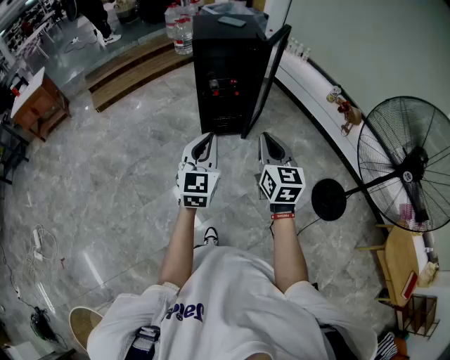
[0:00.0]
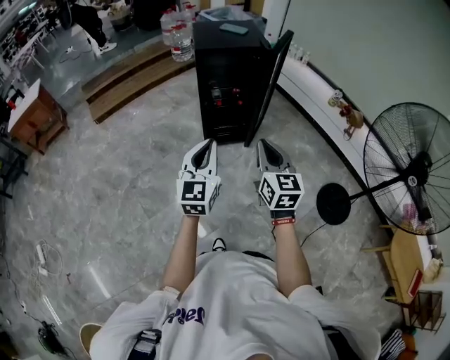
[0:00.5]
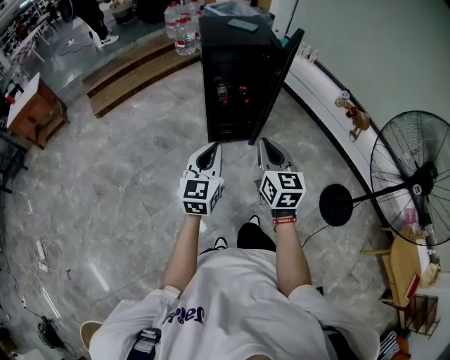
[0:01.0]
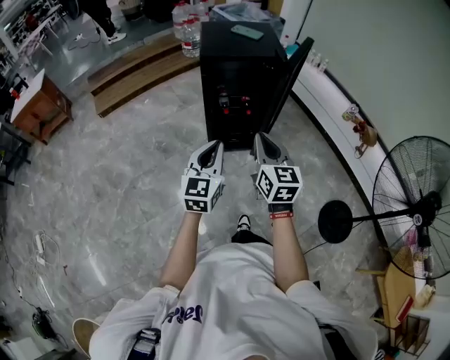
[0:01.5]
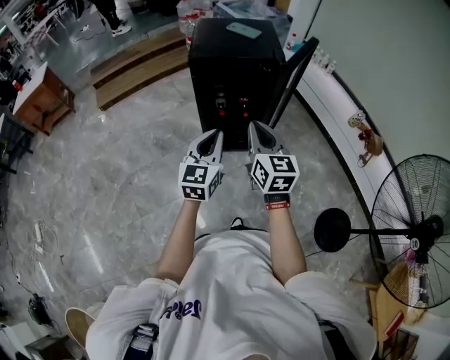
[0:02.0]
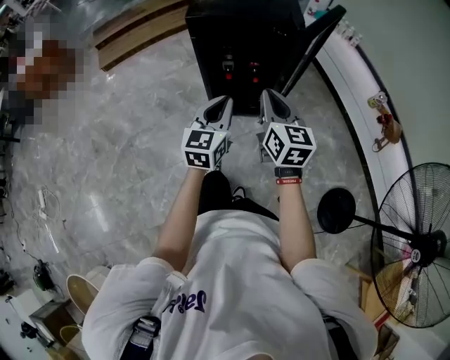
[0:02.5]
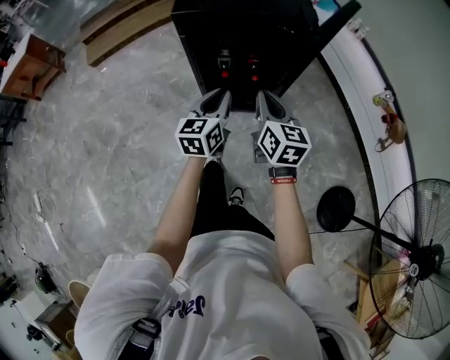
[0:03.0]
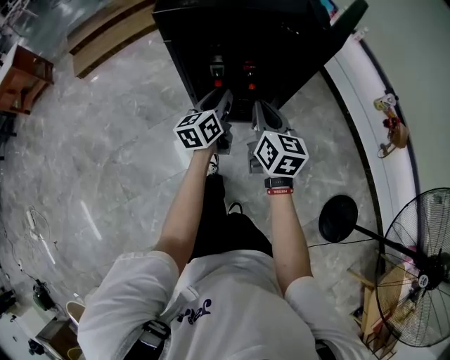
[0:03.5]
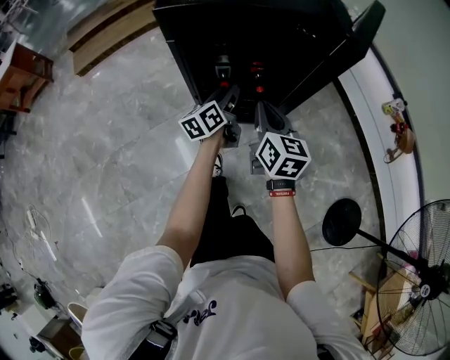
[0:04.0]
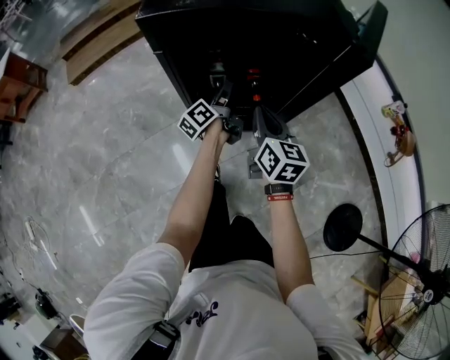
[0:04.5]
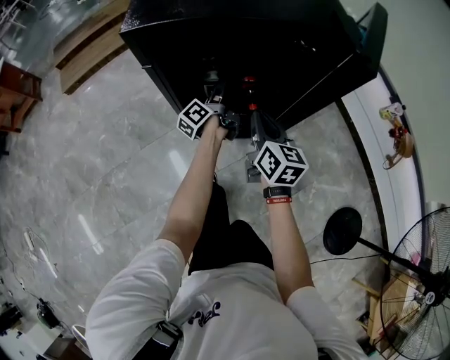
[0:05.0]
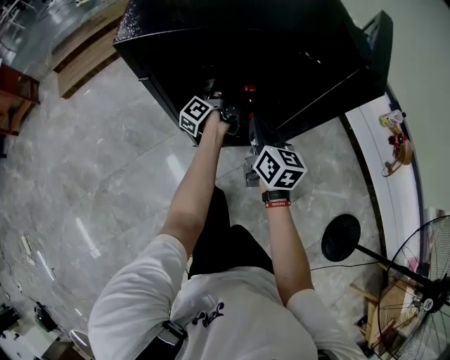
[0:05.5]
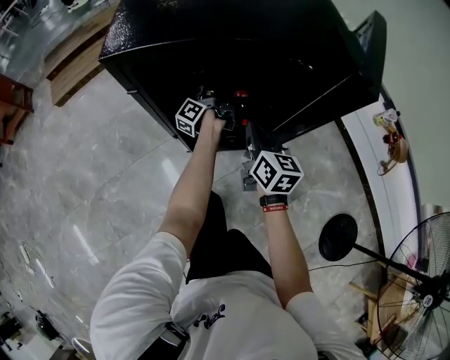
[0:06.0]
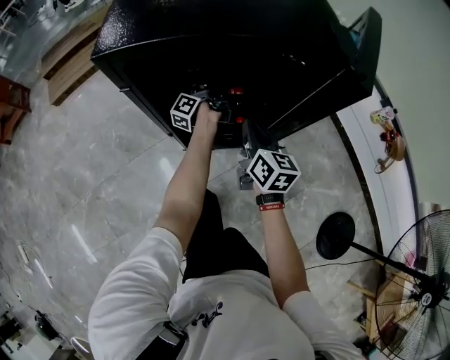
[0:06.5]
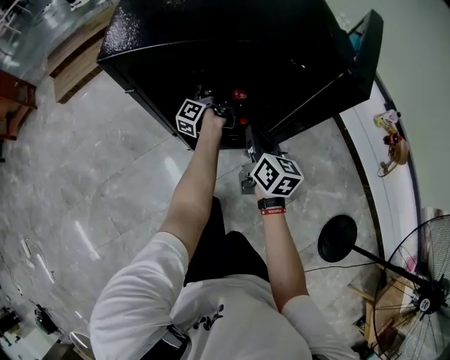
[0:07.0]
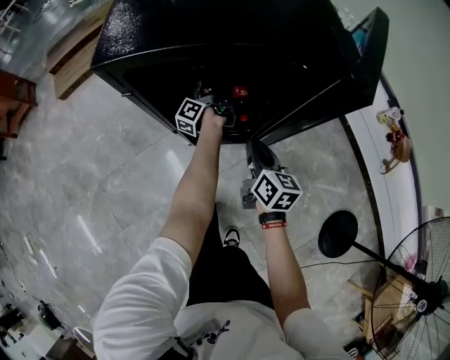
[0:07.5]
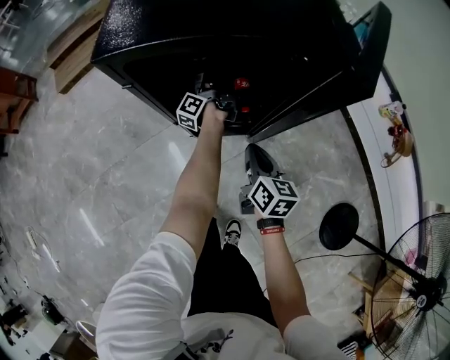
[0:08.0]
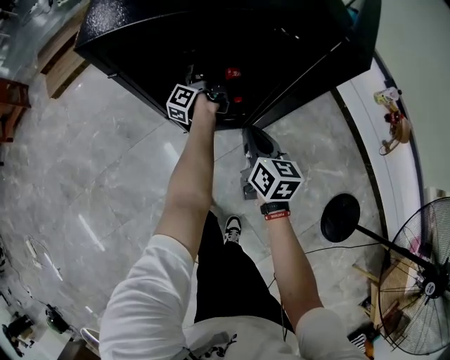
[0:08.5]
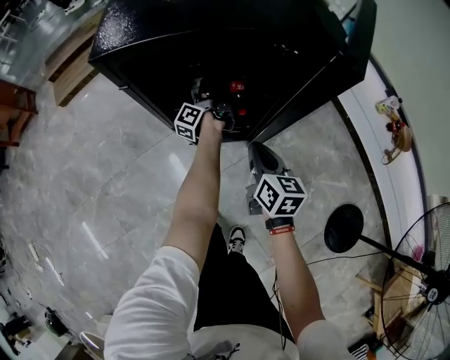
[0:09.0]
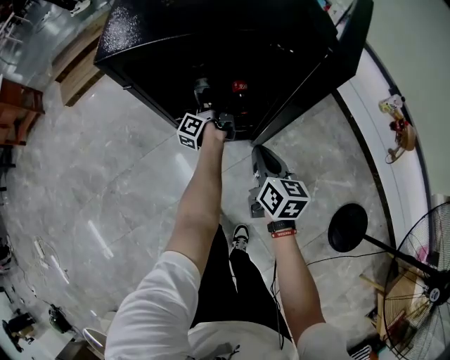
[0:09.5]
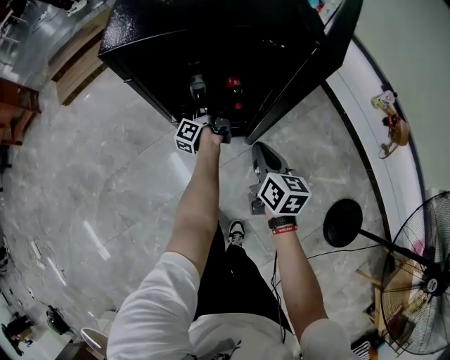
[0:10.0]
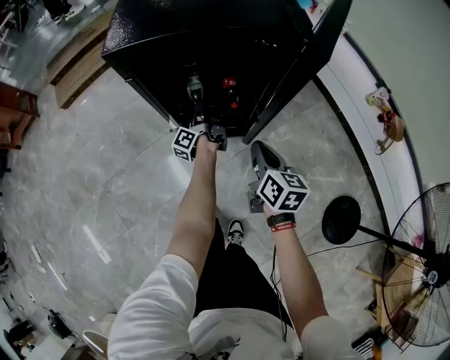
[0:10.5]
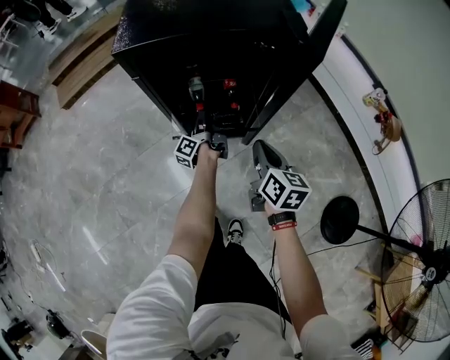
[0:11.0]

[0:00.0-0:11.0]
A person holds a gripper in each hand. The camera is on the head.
0:00.0 to 0:02.0: Both grippers move forward, about 30 cm.
0:02.0 to 0:03.5: The two grippers go about 35 cm downward and forward. The left gripper rotates approximately 40 degrees, and opens.
0:03.5 to 0:05.5: The right gripper goes roughly 20 cm forward and downward; the left gripper heads forward and downward, covering roughly 30 cm, rolls counterclockwise, seen from behind, by approximately 50 degrees, and opens up.
0:05.5 to 0:07.5: The left gripper closes. The right gripper moves roughly 5 cm.
0:07.5 to 0:09.0: The grippers make only small movements.
0:09.0 to 0:11.0: The right gripper shifts some 10 cm backward and upward; the left gripper travels backward by approximately 15 cm.

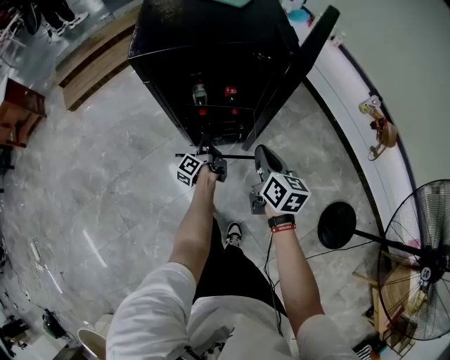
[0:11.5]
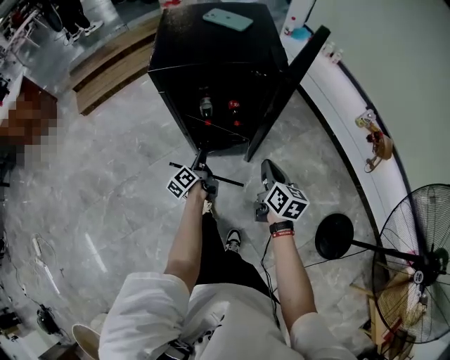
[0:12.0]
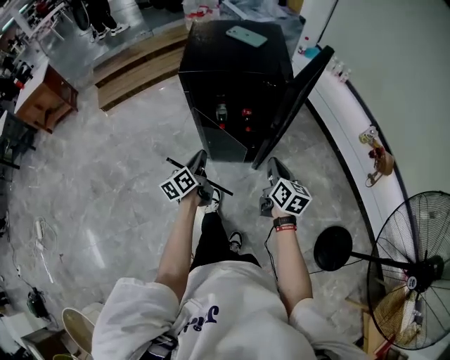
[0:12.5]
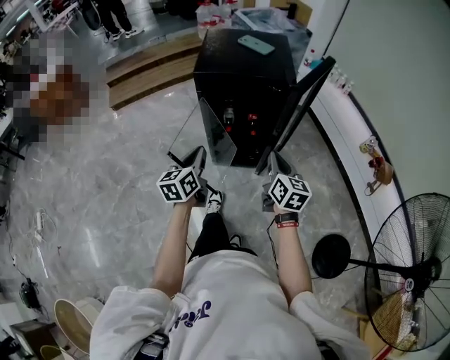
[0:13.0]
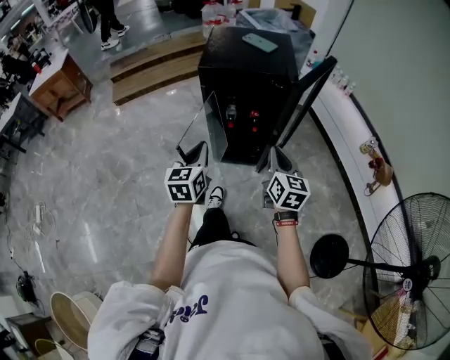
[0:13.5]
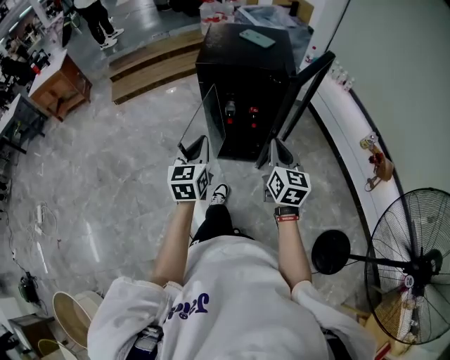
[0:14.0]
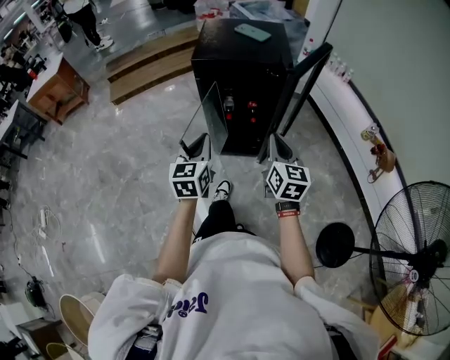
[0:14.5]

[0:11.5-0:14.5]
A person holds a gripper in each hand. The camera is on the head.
0:11.5 to 0:13.0: The right gripper heads upward and backward, covering approximately 20 cm, while the left gripper travels upward and backward by roughly 40 cm, and twists approximately 60 degrees clockwise, seen from behind.
0:13.0 to 0:14.5: The right gripper ends up approximately 5 cm from where it was. Meanwhile the left gripper moves some 5 cm, and changes its angle by some 20 degrees.

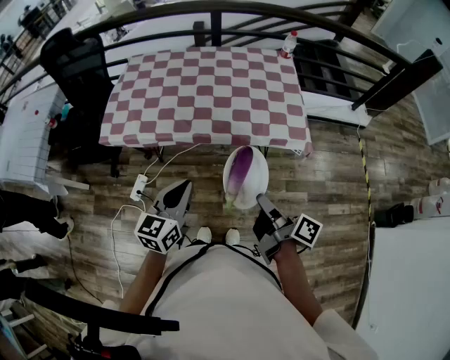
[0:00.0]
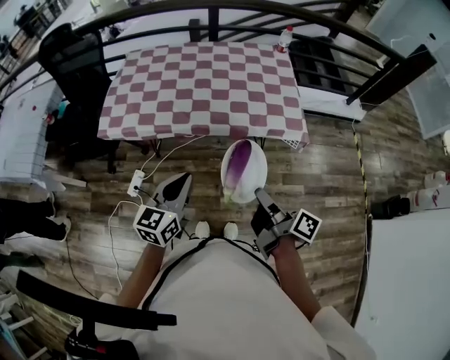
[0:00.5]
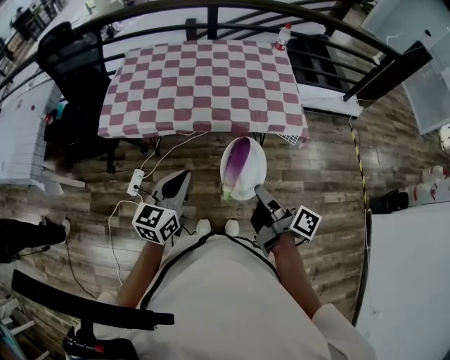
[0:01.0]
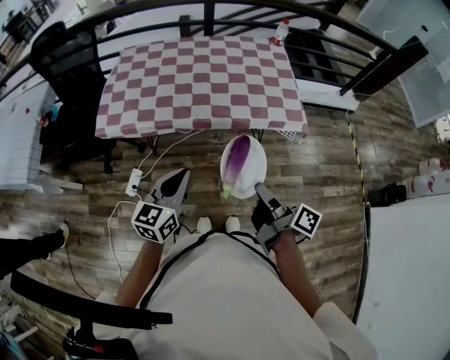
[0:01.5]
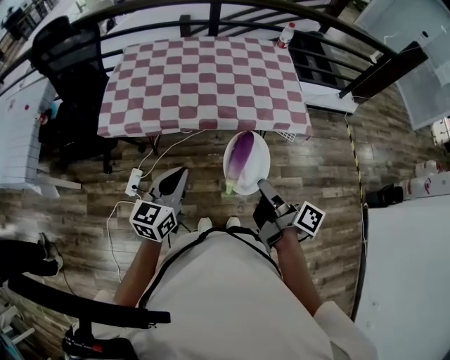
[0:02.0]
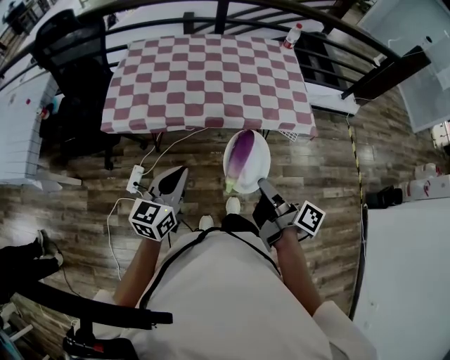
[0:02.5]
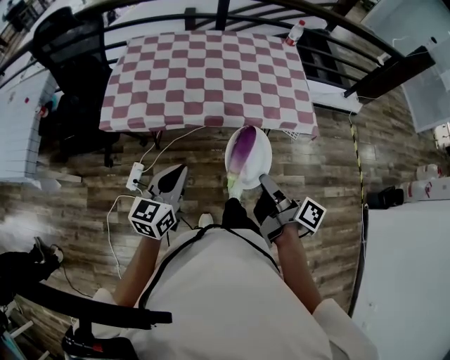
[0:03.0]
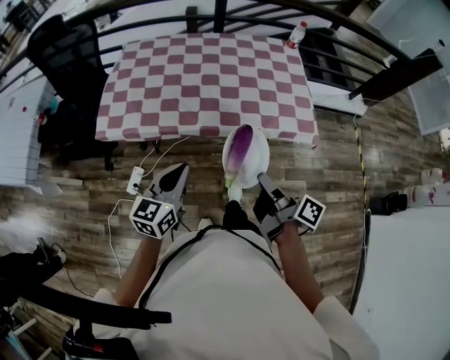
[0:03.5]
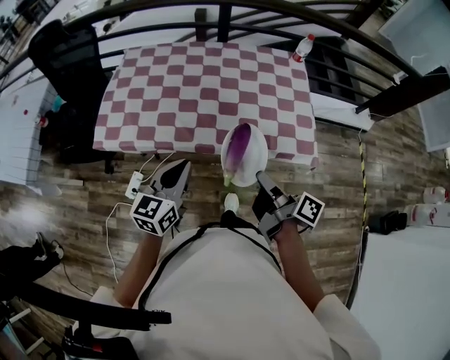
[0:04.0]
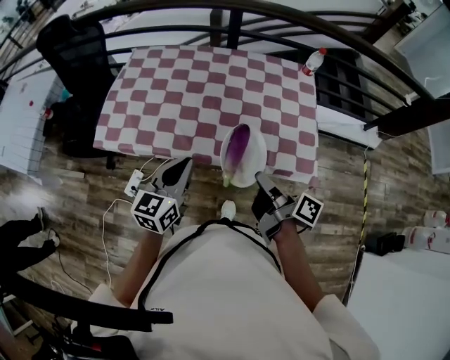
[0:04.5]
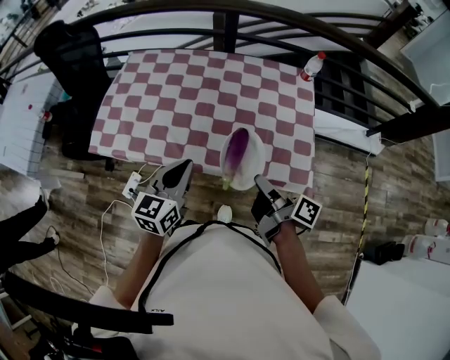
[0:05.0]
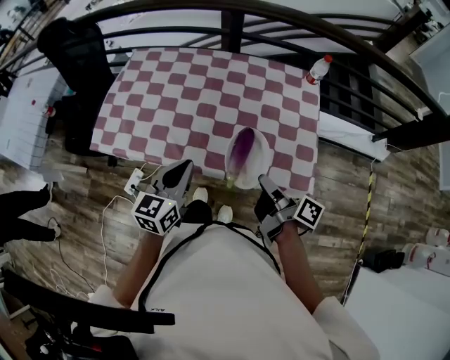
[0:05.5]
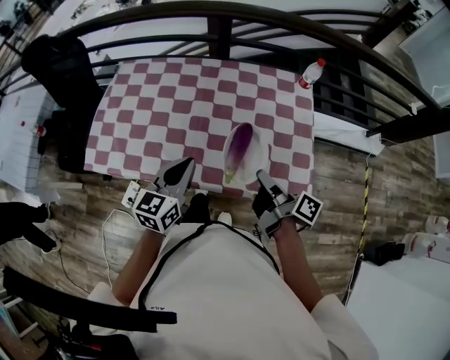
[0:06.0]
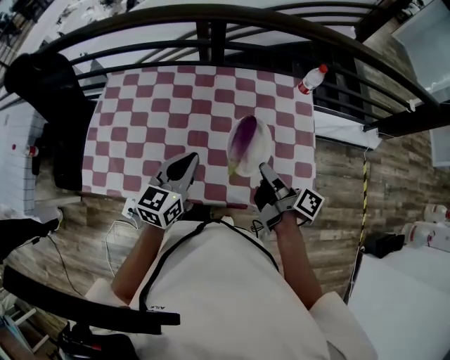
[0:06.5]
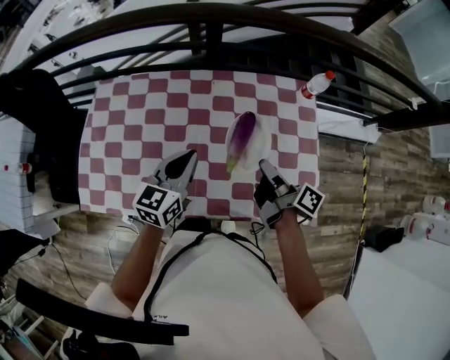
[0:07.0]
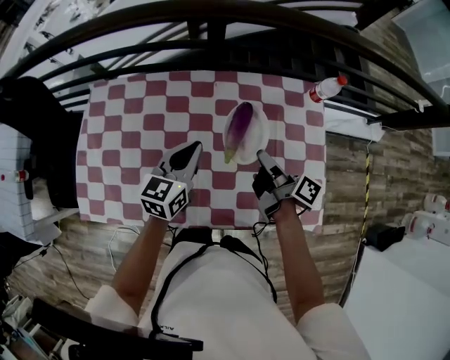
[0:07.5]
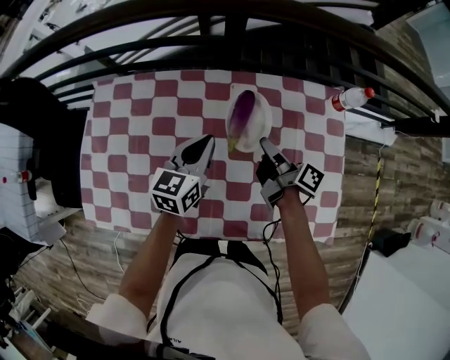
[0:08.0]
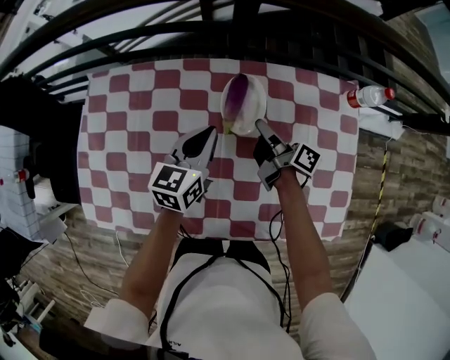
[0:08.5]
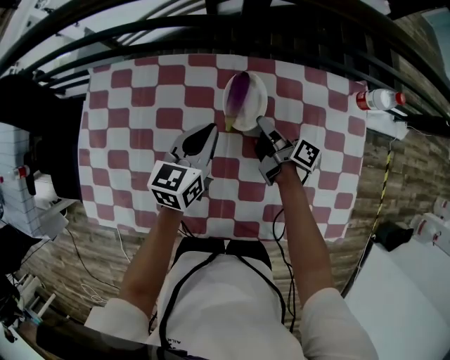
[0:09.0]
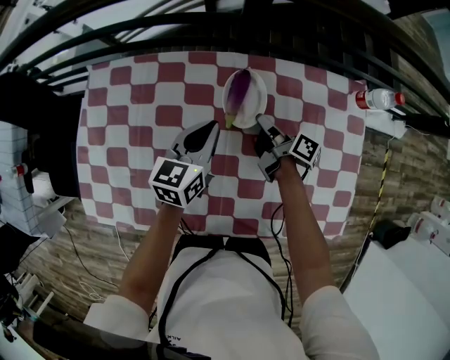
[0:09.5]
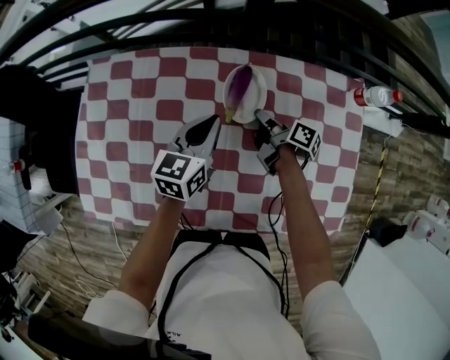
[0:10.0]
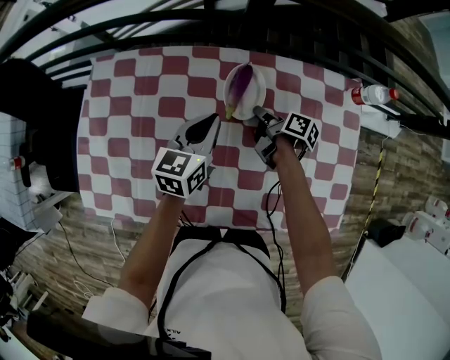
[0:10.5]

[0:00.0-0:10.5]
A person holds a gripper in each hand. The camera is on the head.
0:00.0 to 0:02.0: The left gripper moves about 10 cm.
0:02.0 to 0:04.0: The left gripper shifts by some 20 cm.
0:04.0 to 0:06.5: The left gripper shifts by about 30 cm.
0:06.5 to 0:08.5: The left gripper changes place by approximately 25 cm.

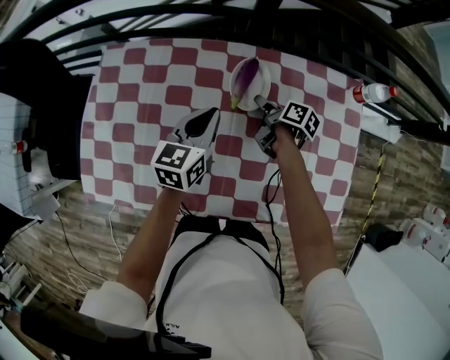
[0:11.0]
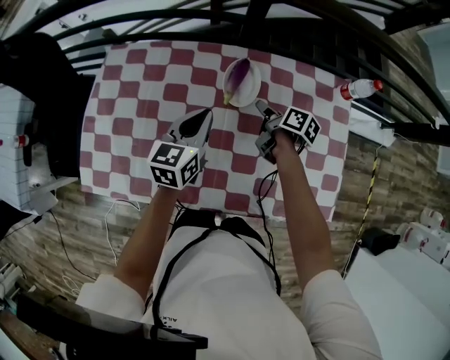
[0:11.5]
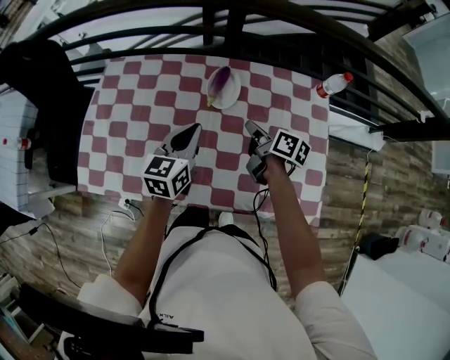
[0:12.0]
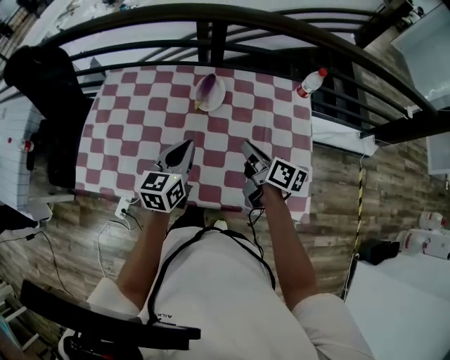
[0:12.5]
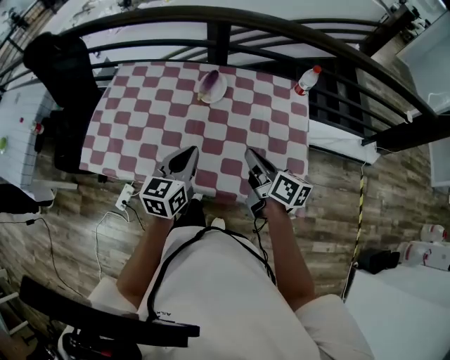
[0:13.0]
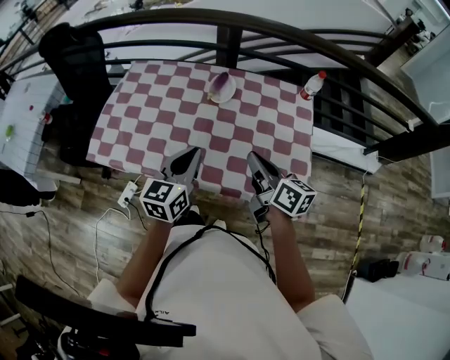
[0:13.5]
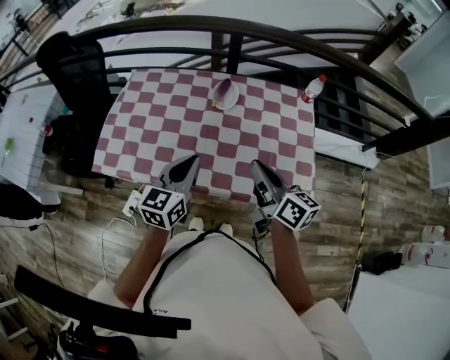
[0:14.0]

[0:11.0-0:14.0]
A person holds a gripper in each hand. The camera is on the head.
0:11.0 to 0:12.5: The left gripper shifts by approximately 20 cm.
0:12.5 to 0:14.0: The left gripper ends up approximately 15 cm from where it was.
